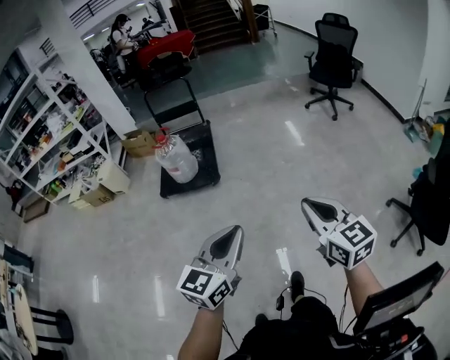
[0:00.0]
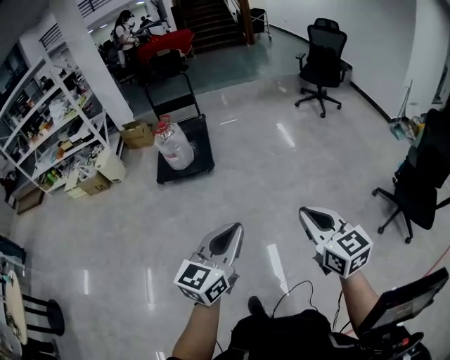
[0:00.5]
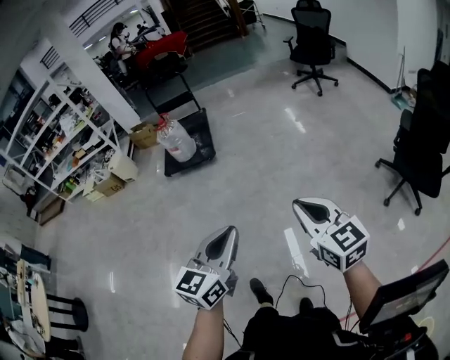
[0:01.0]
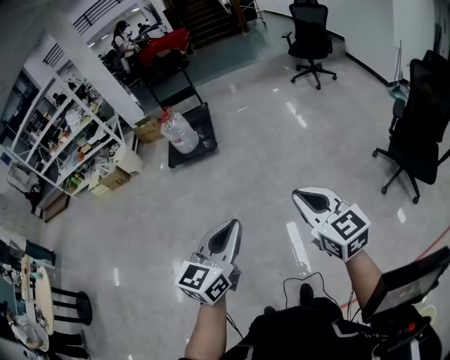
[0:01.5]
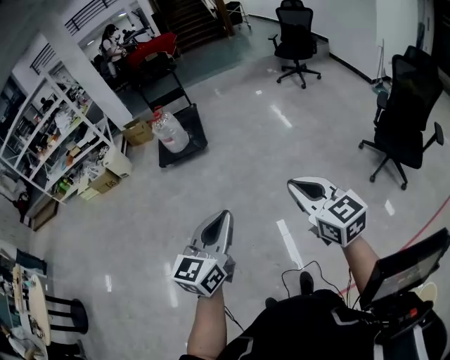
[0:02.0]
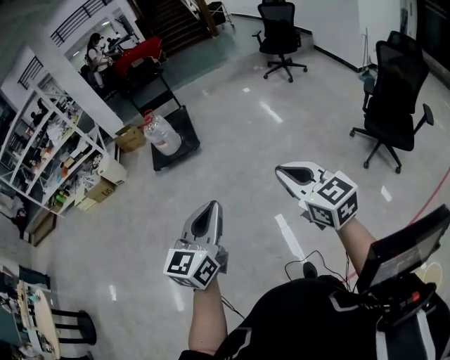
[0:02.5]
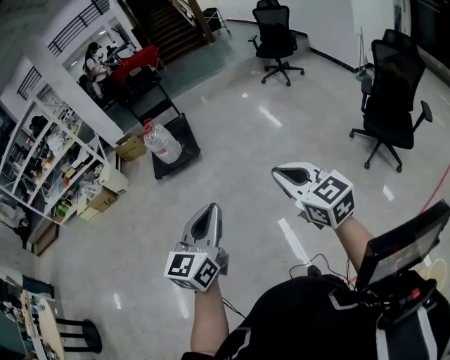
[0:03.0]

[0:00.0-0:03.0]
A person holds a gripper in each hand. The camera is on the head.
0:00.0 to 0:01.5: The two grippers travel together, backward, roughly 40 cm.
0:01.5 to 0:03.0: The left gripper goes some 10 cm to the left. Meanwhile the right gripper goes approximately 10 cm to the left and backward.

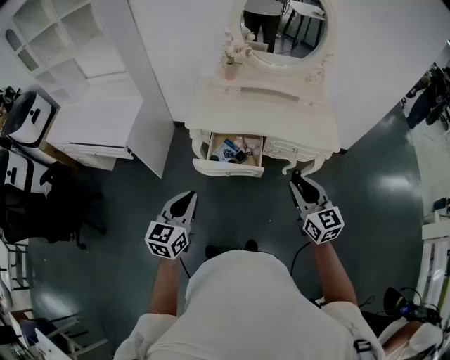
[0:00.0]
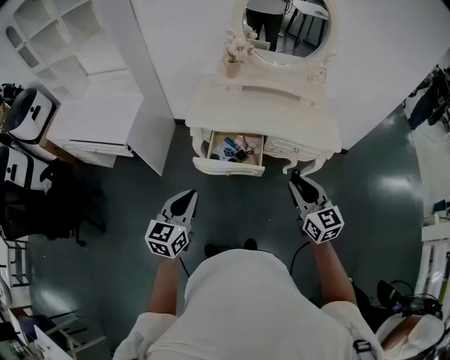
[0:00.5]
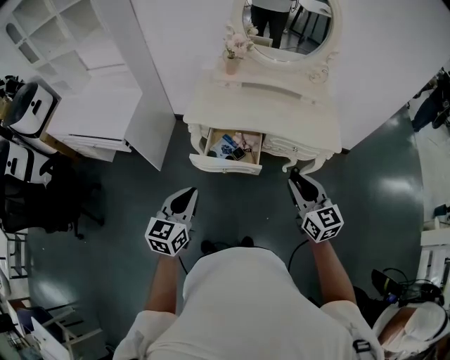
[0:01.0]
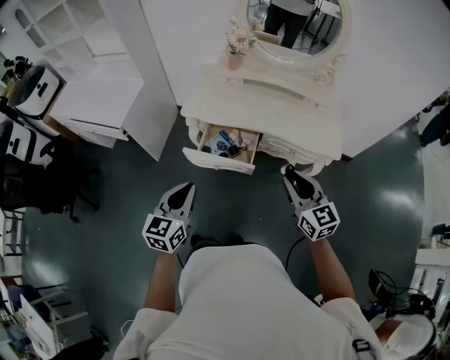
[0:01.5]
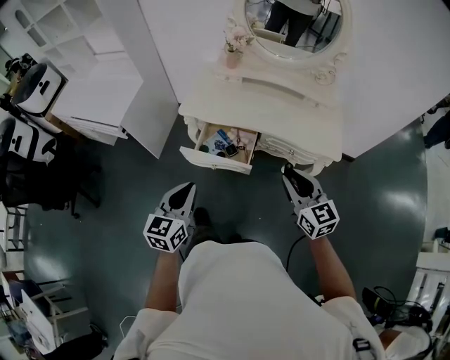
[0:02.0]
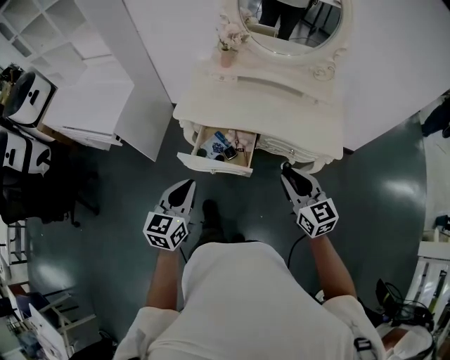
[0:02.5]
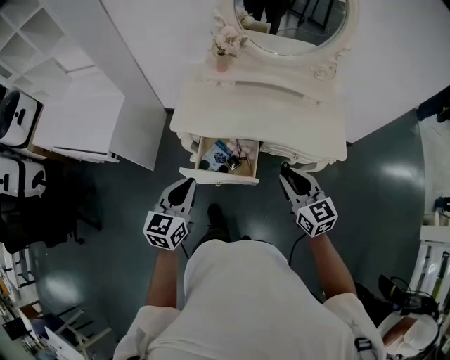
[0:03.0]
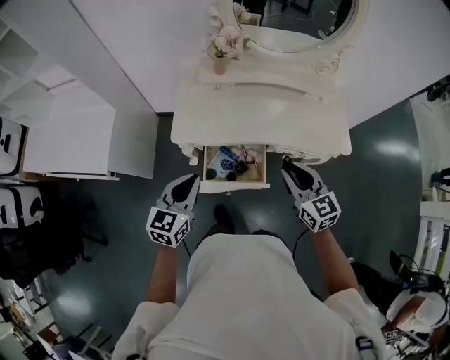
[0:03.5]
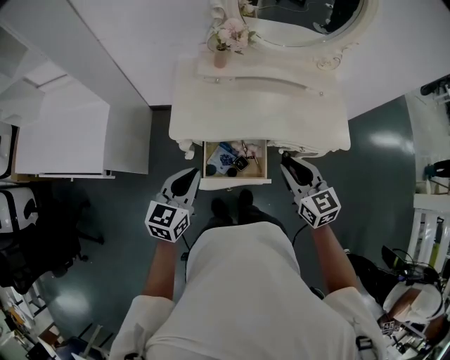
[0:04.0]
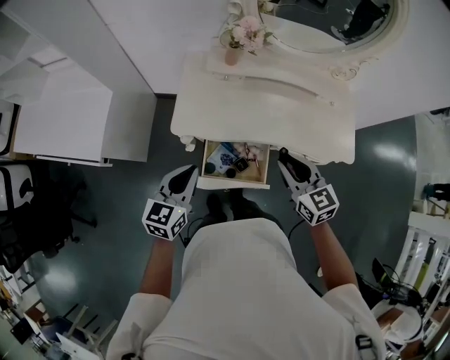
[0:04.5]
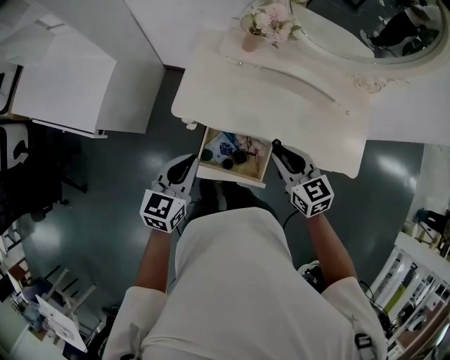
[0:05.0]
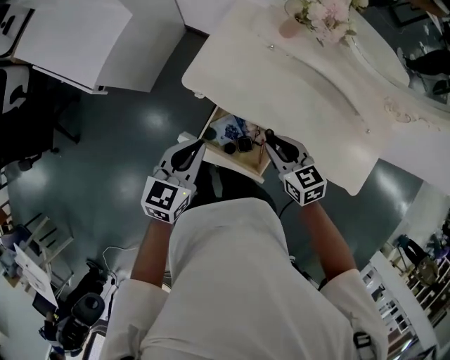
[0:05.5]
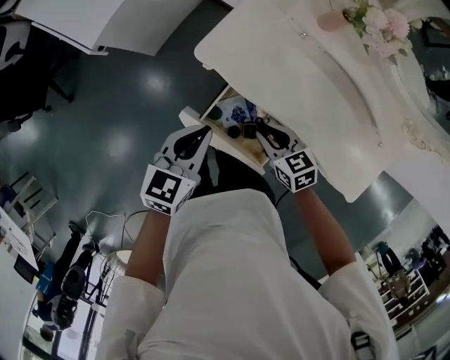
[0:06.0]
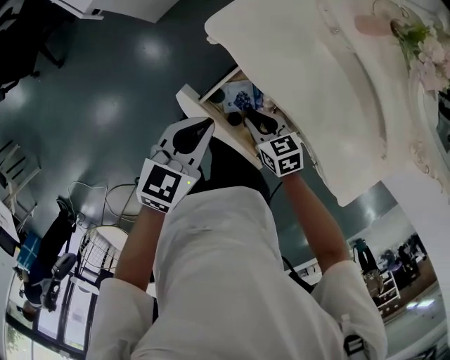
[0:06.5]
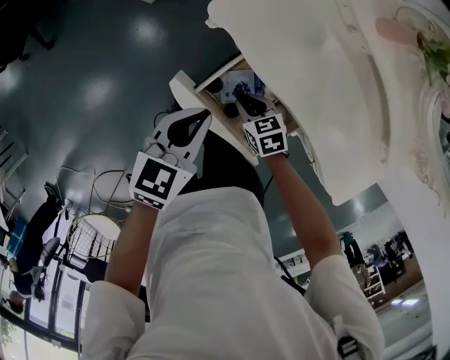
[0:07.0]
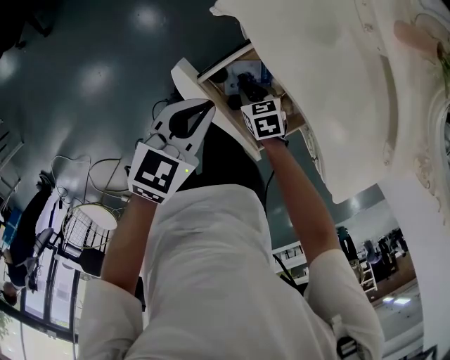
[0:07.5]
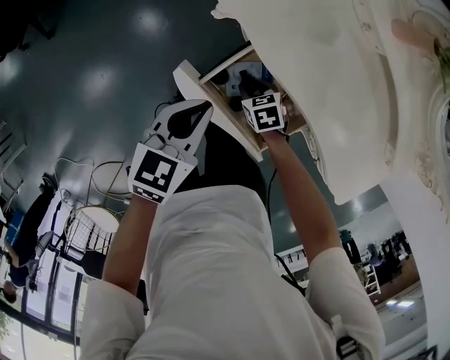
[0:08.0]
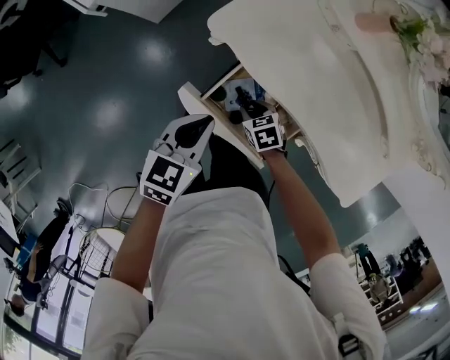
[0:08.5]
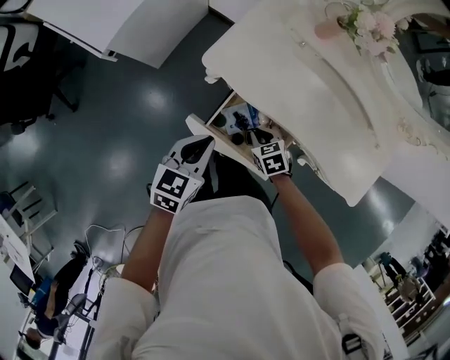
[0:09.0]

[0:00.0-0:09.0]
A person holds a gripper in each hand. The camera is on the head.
0:00.0 to 0:02.0: The left gripper is displaced to the right by about 10 cm, while the right gripper travels to the right and forward by approximately 10 cm.
0:02.0 to 0:04.5: Both grippers move forward and to the left, roughly 25 cm.
0:04.5 to 0:07.0: The left gripper is displaced downward by approximately 20 cm, and turns by about 30 degrees, while the right gripper moves downward, some 40 cm, and angles its fingers downward, by some 30 degrees.
0:07.0 to 0:09.0: The grippers both shift upward by about 5 cm.

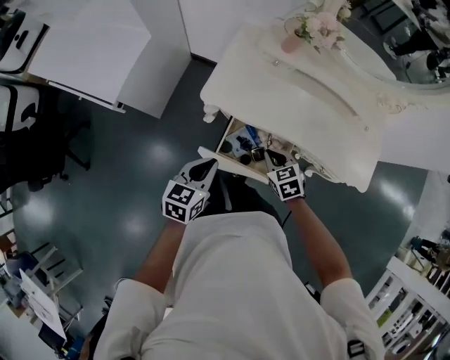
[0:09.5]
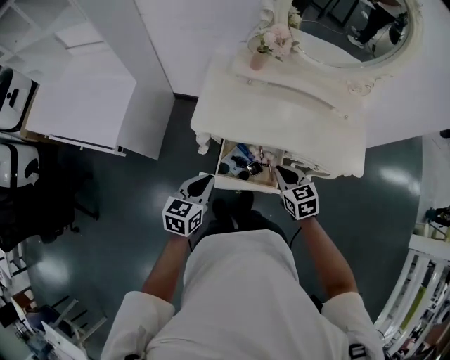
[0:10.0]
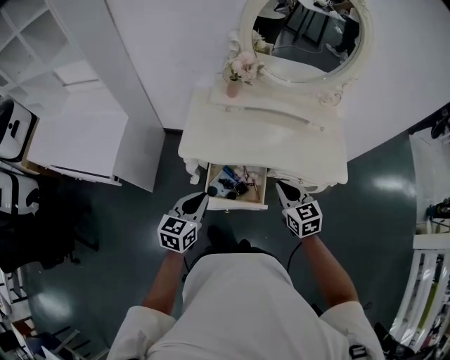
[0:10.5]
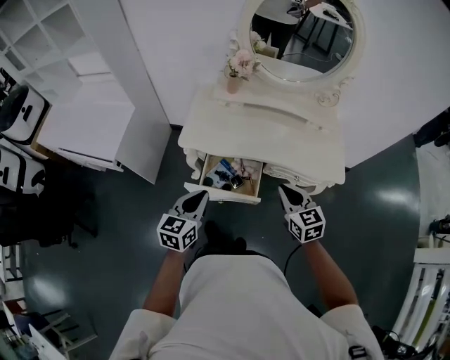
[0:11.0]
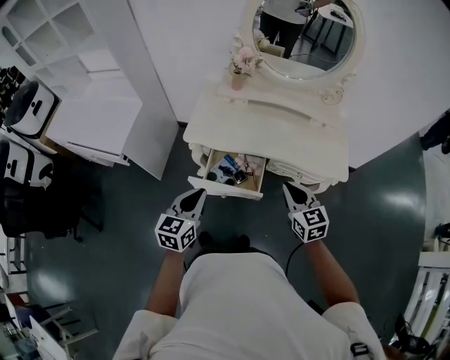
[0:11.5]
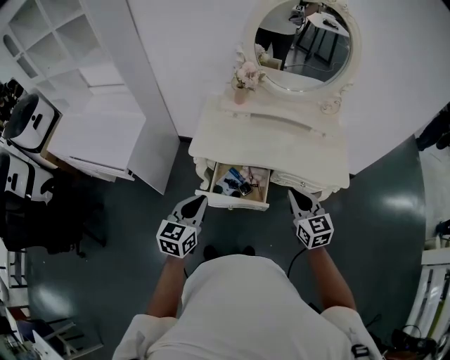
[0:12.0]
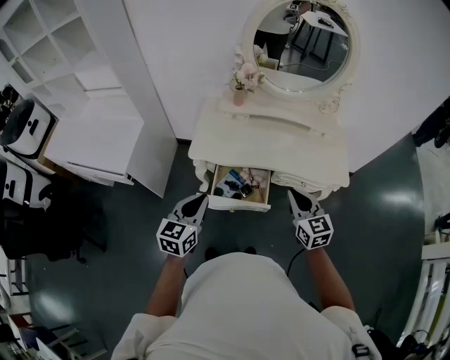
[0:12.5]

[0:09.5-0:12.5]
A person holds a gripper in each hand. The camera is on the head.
0:09.5 to 0:11.0: The right gripper heads upward, to the right and backward, covering some 25 cm, and turns by roughly 30 degrees. The left gripper is displaced upward, backward and to the right by about 15 cm.
0:11.0 to 0:12.5: The left gripper moves to the left, approximately 5 cm.

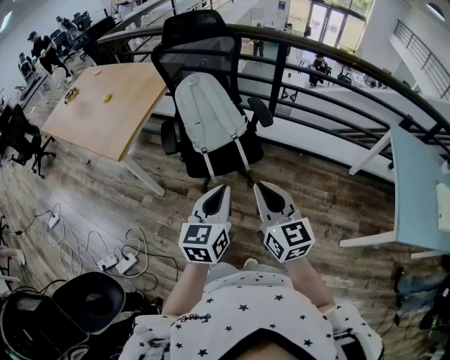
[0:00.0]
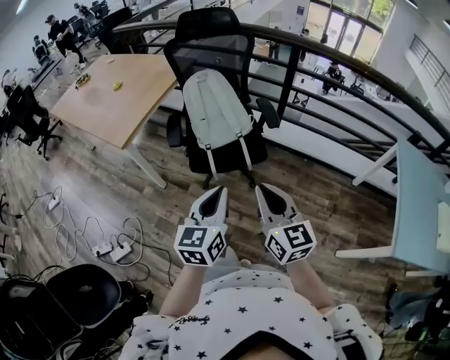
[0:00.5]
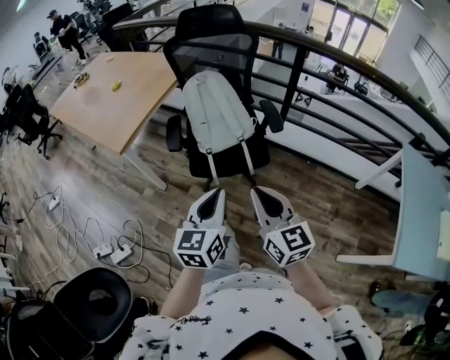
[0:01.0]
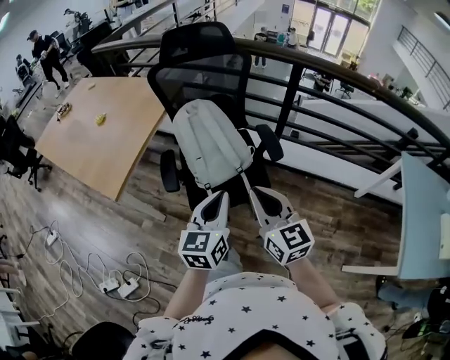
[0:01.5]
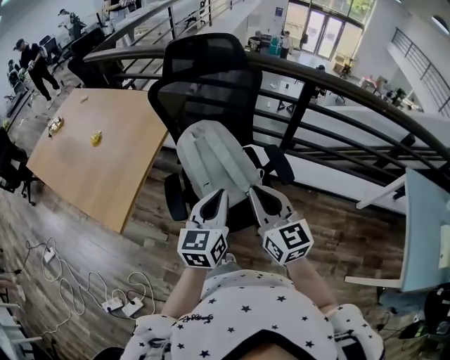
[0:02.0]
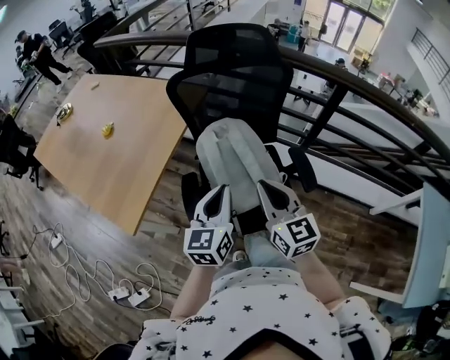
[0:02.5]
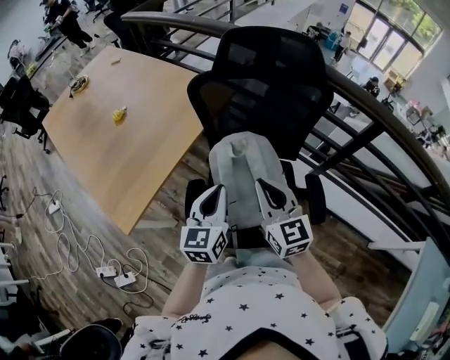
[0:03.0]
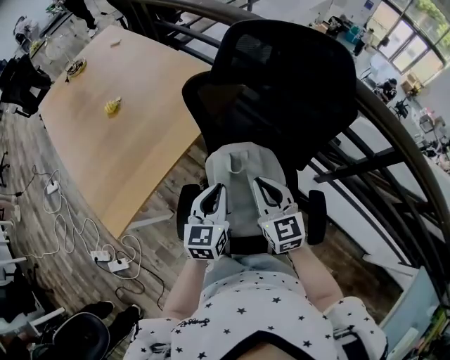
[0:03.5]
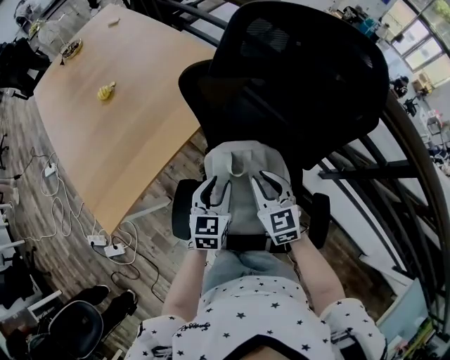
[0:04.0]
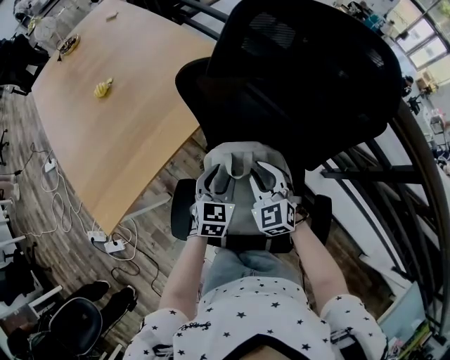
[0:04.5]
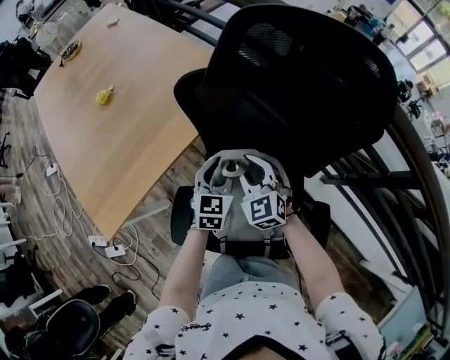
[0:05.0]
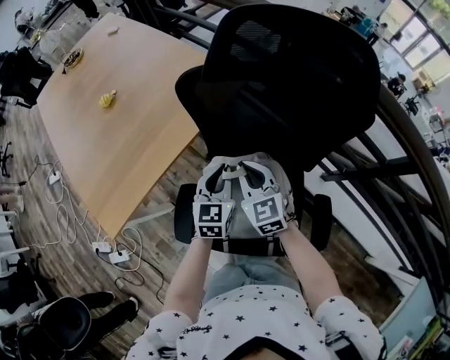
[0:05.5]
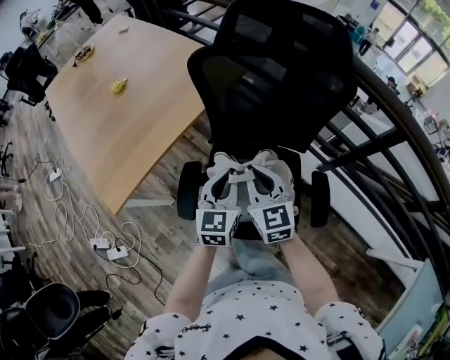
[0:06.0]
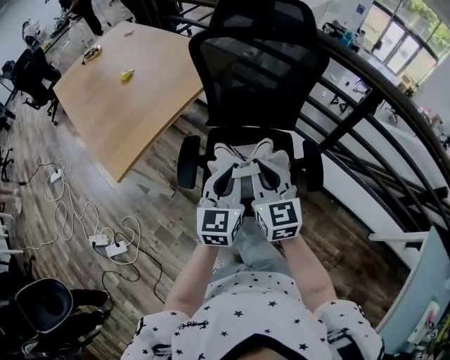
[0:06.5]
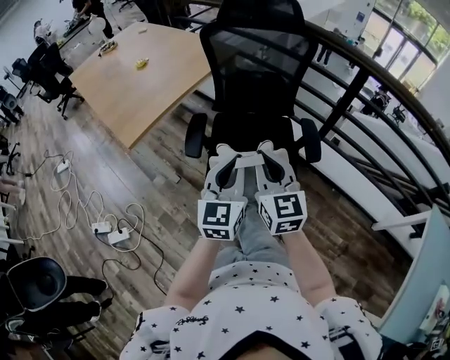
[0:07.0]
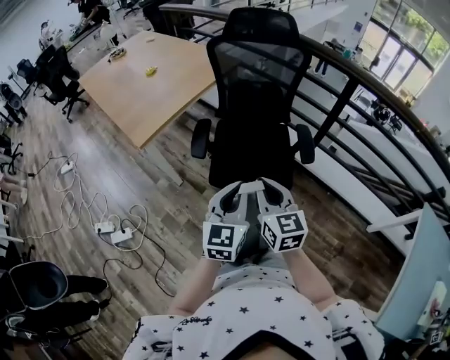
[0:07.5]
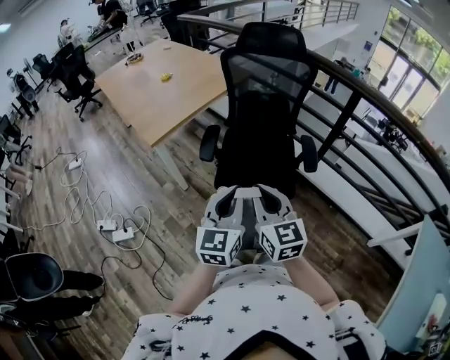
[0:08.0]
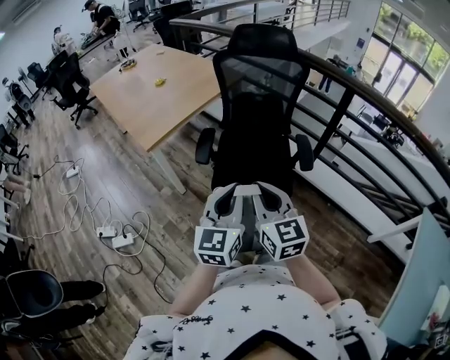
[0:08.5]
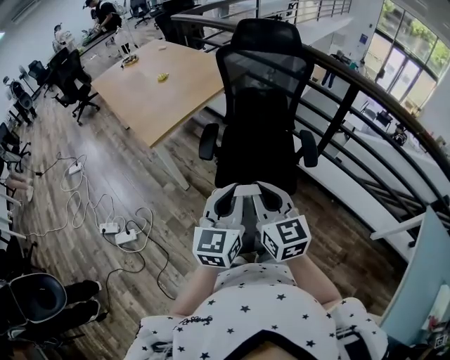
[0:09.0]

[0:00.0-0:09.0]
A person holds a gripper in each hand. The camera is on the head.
0:00.0 to 0:02.0: The grippers both shift forward by approximately 35 cm.
0:02.0 to 0:04.5: The right gripper changes place by some 50 cm, and changes its angle by about 50 degrees. The left gripper changes place by some 50 cm, swivels about 30 degrees, and opens.
0:04.5 to 0:07.0: Both grippers are carried backward, roughly 50 cm. The left gripper heads upward, covering roughly 20 cm, changes its angle by roughly 30 degrees, and closes. The right gripper swivels some 40 degrees.
0:07.0 to 0:09.0: The left gripper goes some 20 cm backward and upward, while the right gripper moves backward, approximately 15 cm.

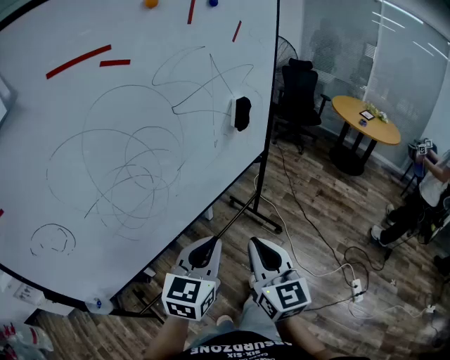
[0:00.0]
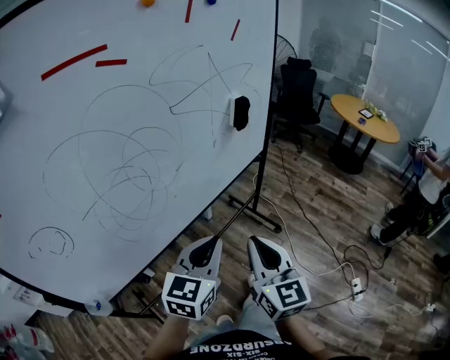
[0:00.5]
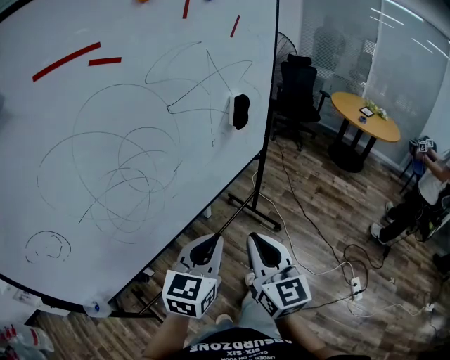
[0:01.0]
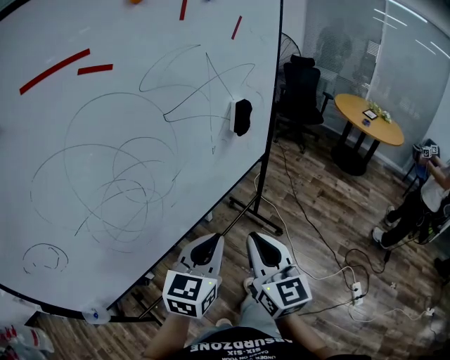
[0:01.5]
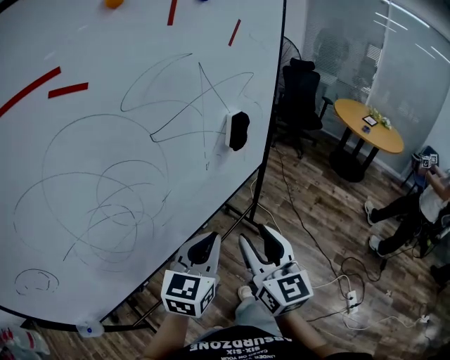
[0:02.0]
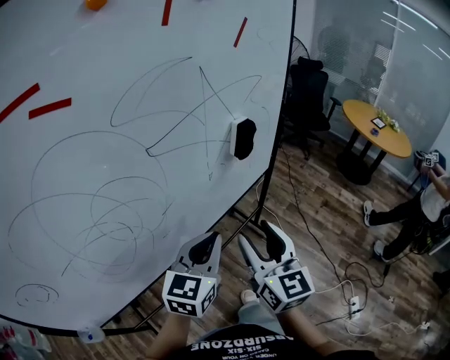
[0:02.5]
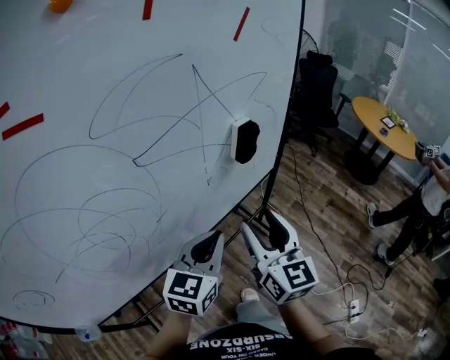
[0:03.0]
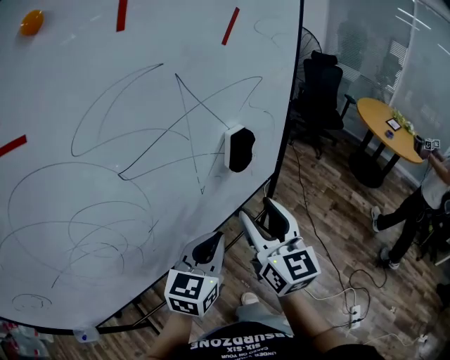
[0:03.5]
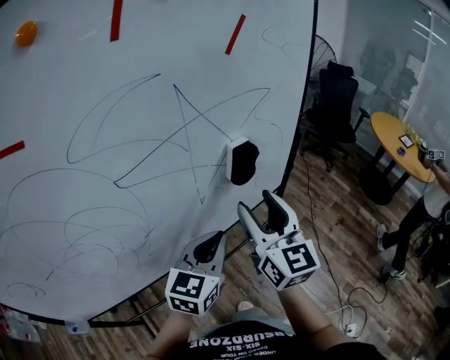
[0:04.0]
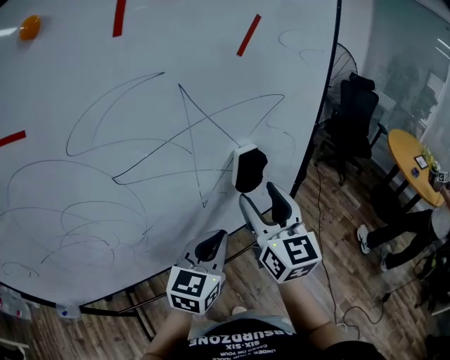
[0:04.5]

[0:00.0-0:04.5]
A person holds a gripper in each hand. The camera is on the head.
0:00.0 to 0:02.0: The two grippers go about 15 cm forward. The right gripper opens.
0:02.0 to 0:04.5: The left gripper goes some 15 cm forward. Meanwhile the right gripper shifts some 25 cm forward.
